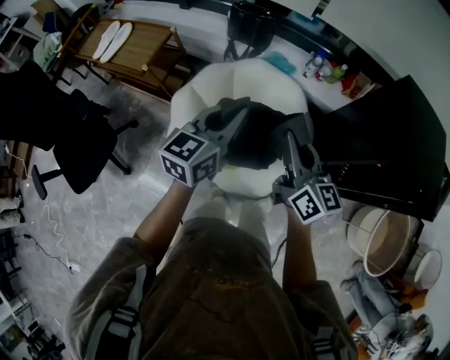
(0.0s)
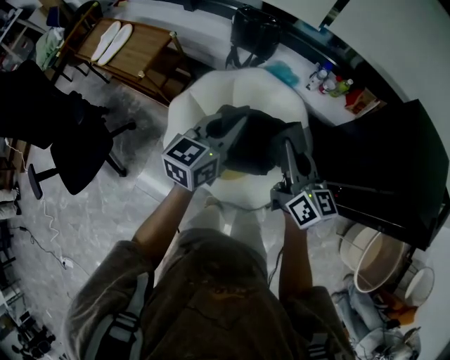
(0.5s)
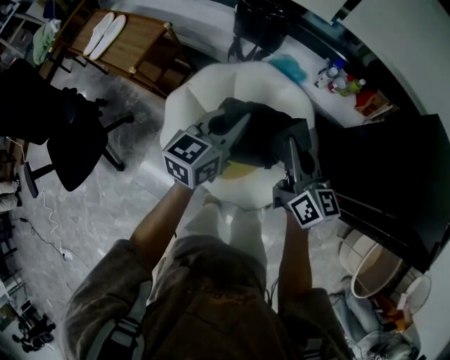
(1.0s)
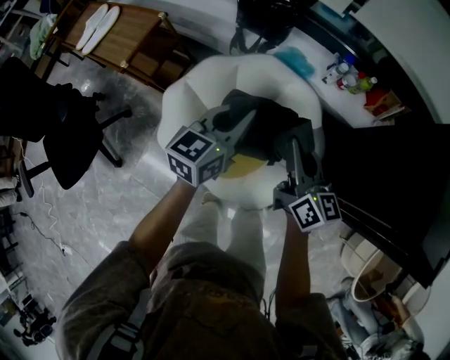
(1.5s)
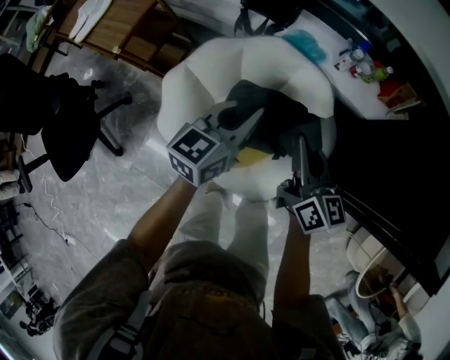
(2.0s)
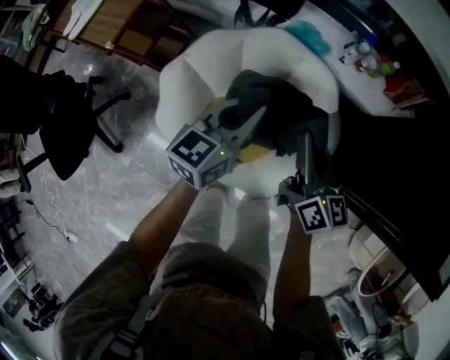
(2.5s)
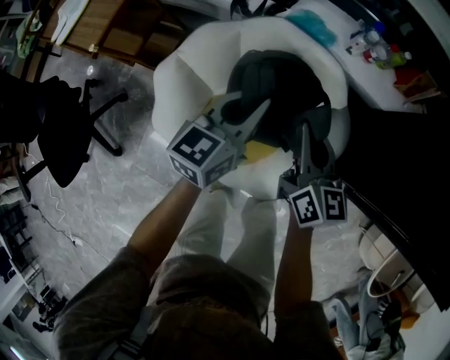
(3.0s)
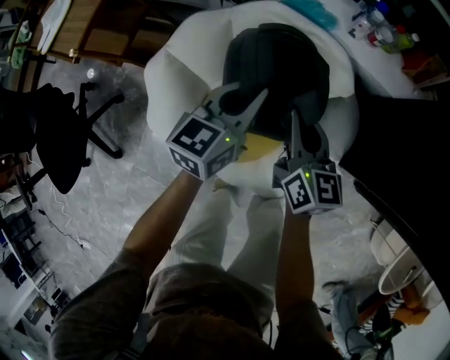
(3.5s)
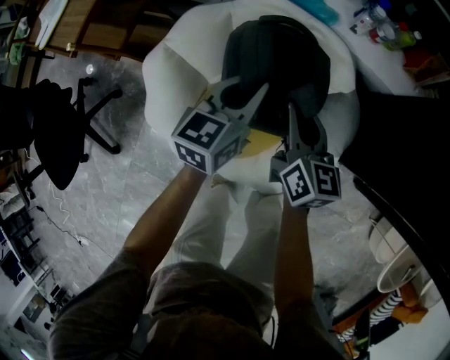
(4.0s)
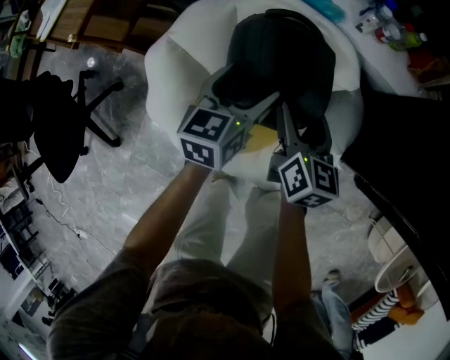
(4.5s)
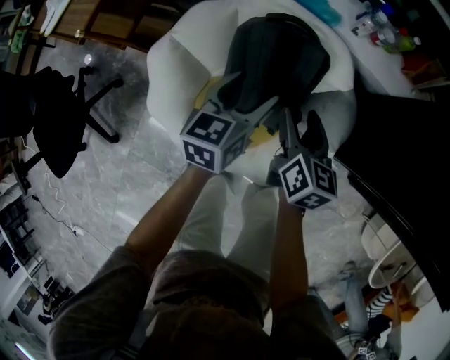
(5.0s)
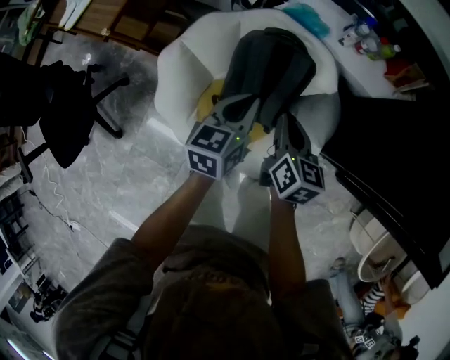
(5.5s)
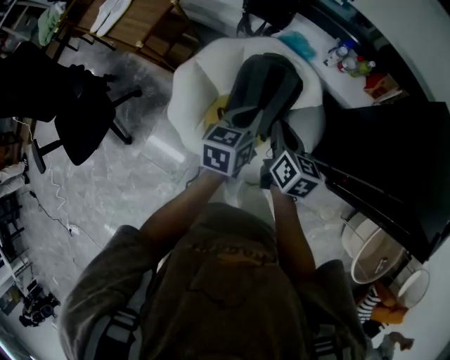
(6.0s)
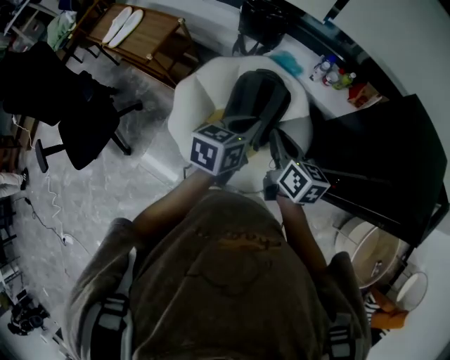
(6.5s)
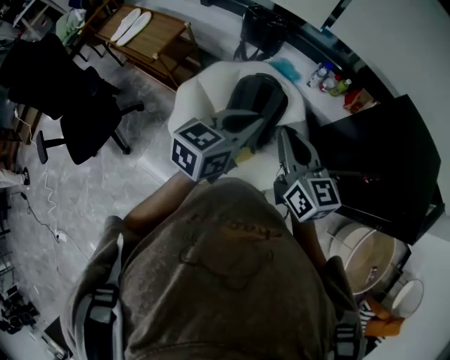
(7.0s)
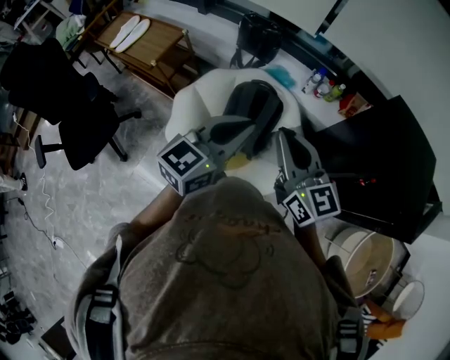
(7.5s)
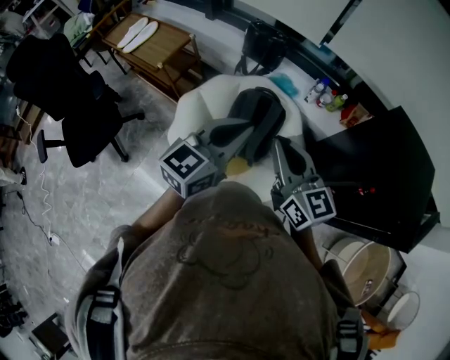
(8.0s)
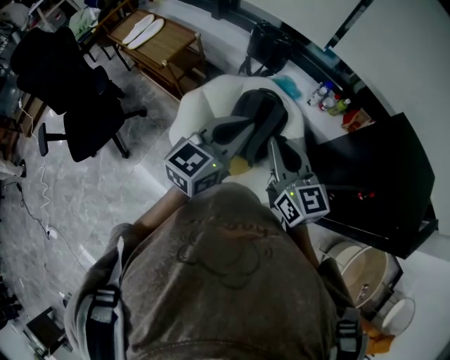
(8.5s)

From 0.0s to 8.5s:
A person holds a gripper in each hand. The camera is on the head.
From 0.0s to 2.0s: Both grippers move downward and forward, about 20 cm.
From 2.0s to 4.0s: The grippers both shift downward by about 15 cm.
From 4.0s to 6.5s: The two grippers go approximately 30 cm upward and backward. The right gripper opens, then closes once more. The left gripper opens, then closes once more.
From 6.5s to 8.5s: The two grippers go roughly 10 cm upward. The right gripper changes its angle by approximately 30 degrees. The left gripper swivels about 30 degrees.

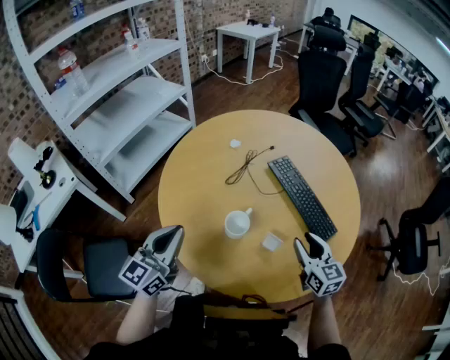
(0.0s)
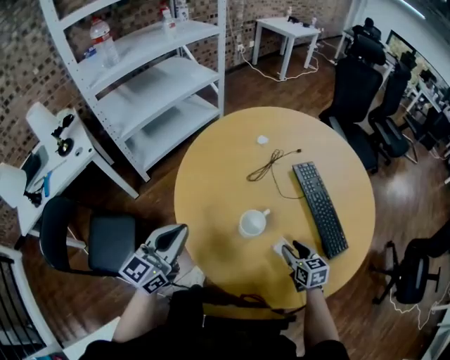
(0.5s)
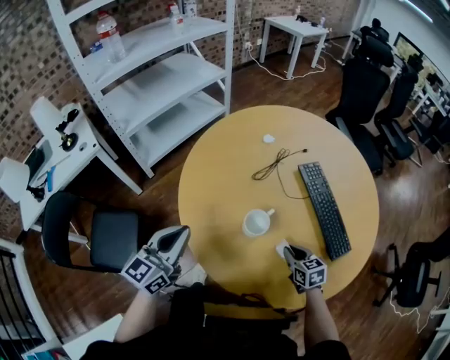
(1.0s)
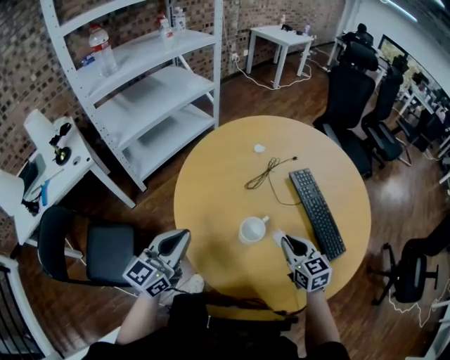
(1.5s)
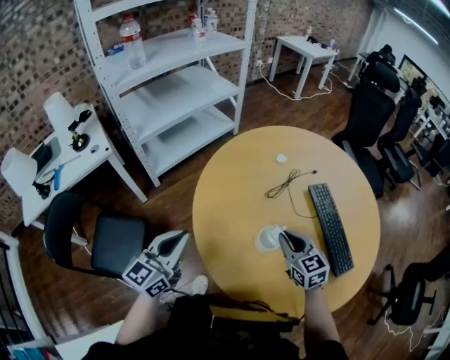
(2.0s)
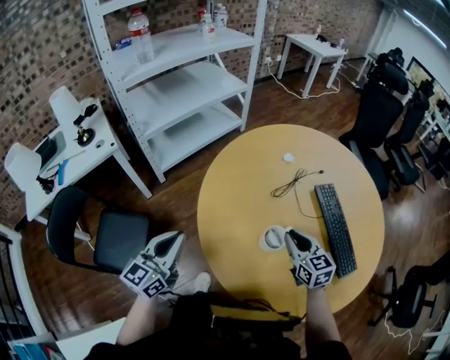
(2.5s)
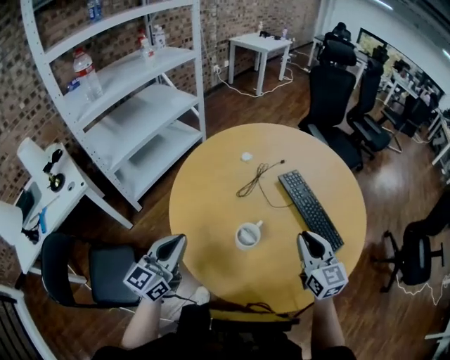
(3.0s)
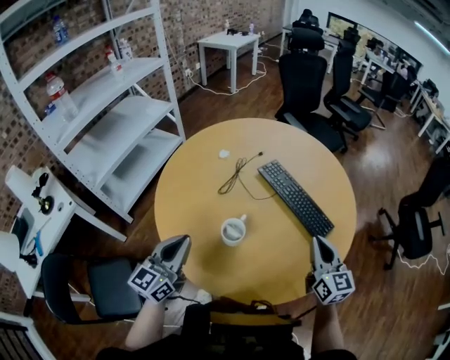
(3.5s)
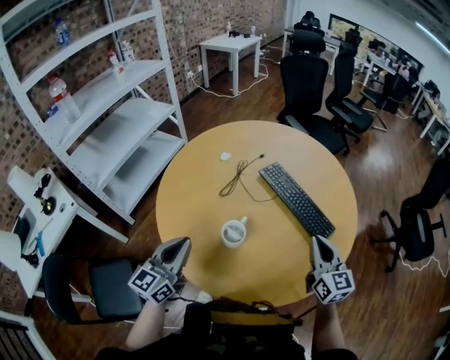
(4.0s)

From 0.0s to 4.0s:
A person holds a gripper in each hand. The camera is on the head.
From 0.0s to 2.0s: The left gripper shifts approximately 10 cm to the left. Meanwhile the right gripper heads to the left and forward, covering some 20 cm, swivels roughly 30 degrees, and closes its fingers.
From 2.0s to 4.0s: The left gripper moves about 10 cm. The right gripper shifts by about 25 cm, and turns by some 40 degrees.

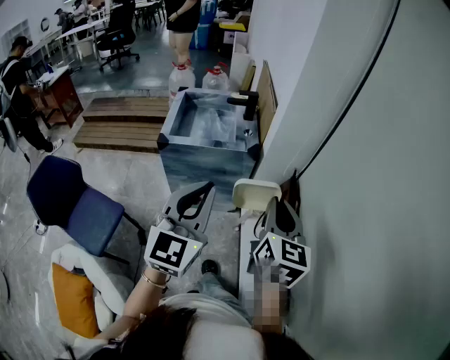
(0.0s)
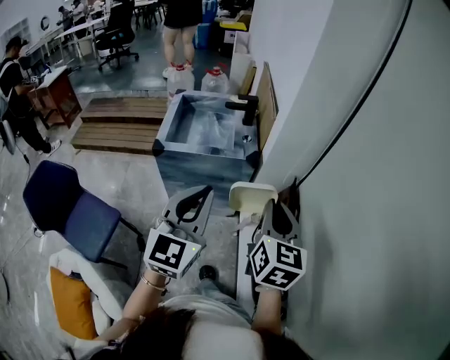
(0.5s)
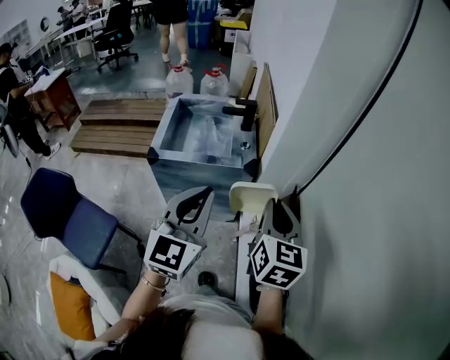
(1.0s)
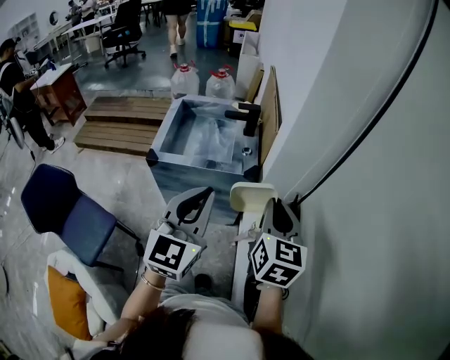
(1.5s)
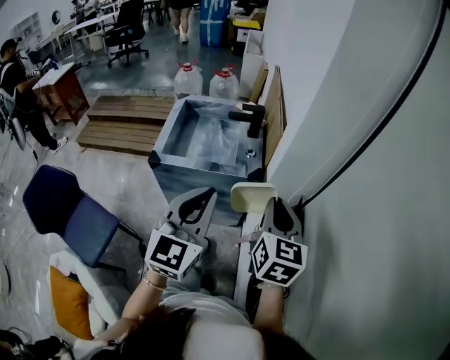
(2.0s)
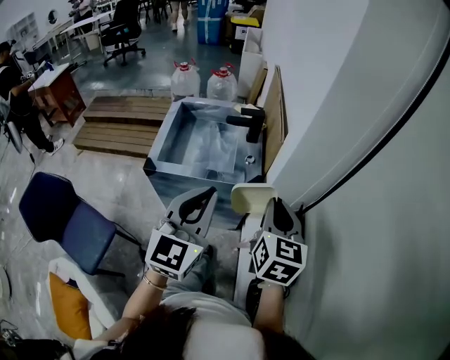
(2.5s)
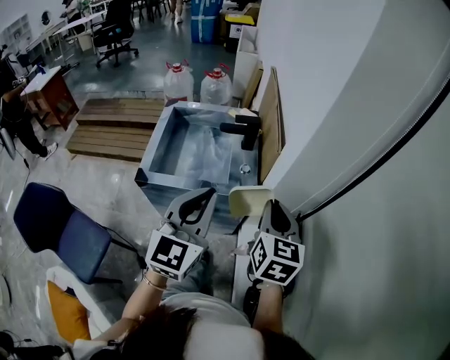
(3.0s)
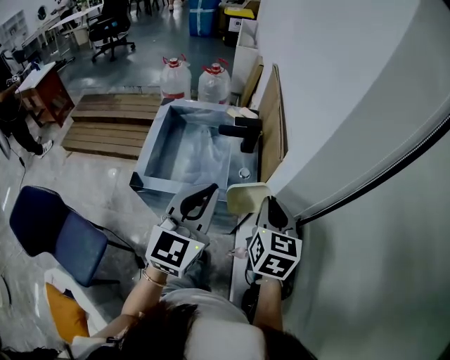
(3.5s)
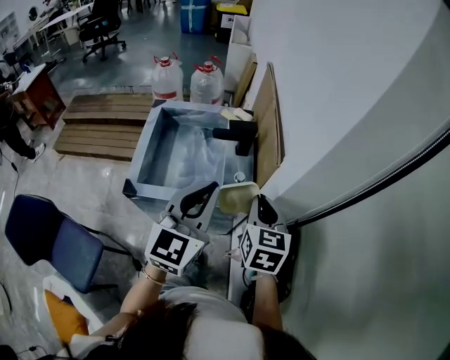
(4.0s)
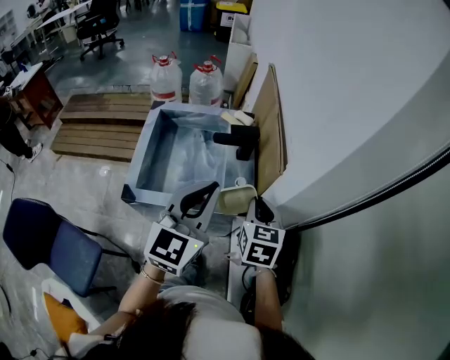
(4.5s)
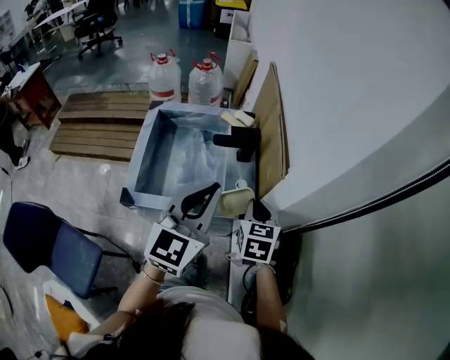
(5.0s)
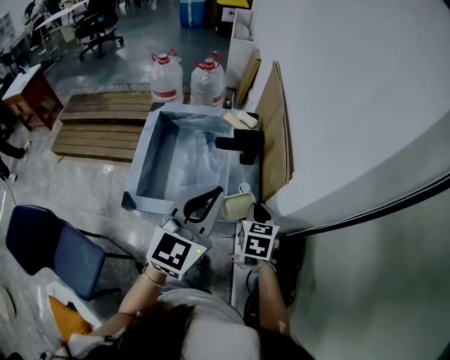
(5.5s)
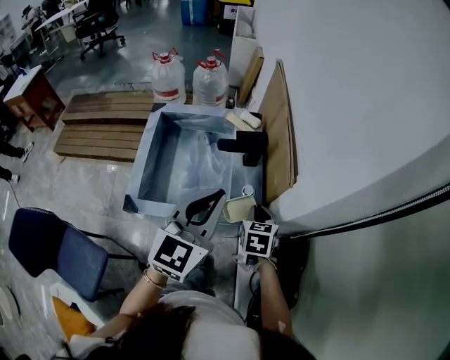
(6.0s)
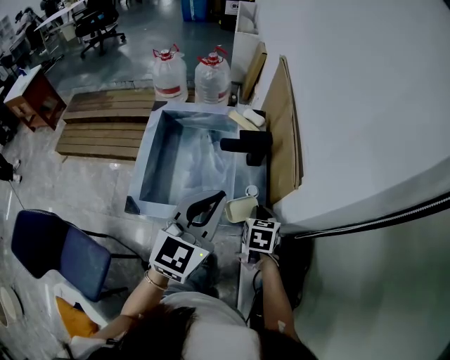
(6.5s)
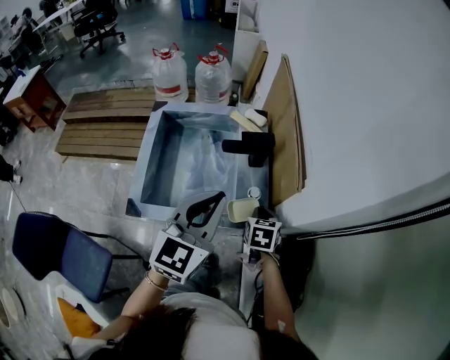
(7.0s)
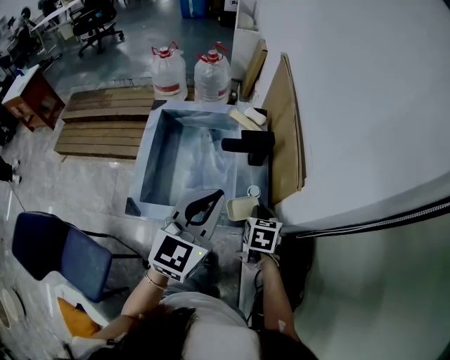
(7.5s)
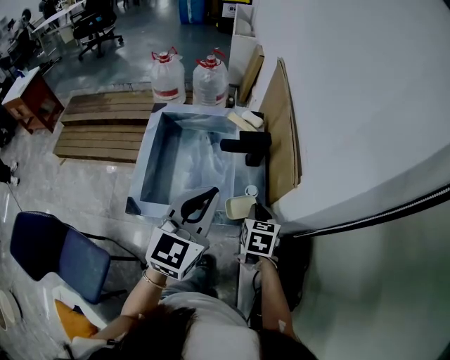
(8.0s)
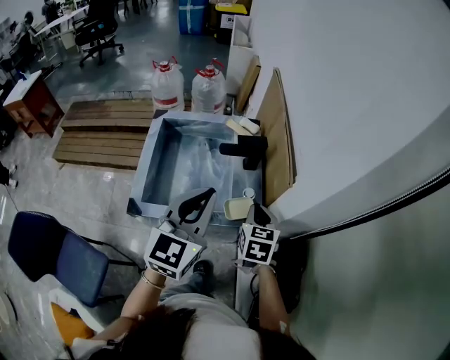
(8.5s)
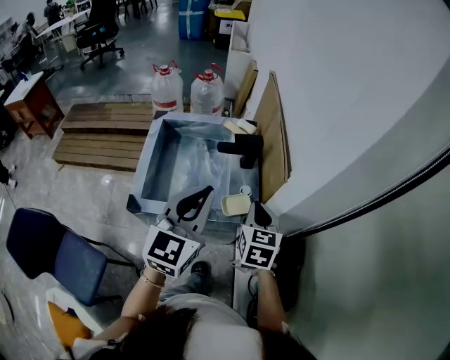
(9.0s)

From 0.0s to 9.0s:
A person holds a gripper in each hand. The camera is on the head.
From 0.0s to 2.0s: Both grippers travel together forward, some 15 cm.
From 2.0s to 4.5s: The left gripper goes roughly 25 cm forward; the right gripper goes some 25 cm forward and downward.
From 4.5s to 7.0s: The right gripper shifts approximately 20 cm downward and forward, and rotates some 20 degrees. Meanwhile the left gripper is displaced forward and downward by approximately 10 cm.
From 7.0s to 9.0s: The right gripper shifts about 15 cm upward, and turns by roughly 20 degrees. Meanwhile the left gripper travels backward by roughly 5 cm.

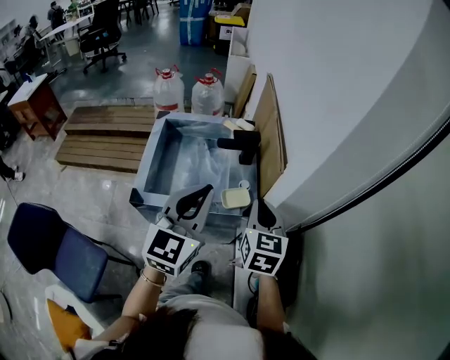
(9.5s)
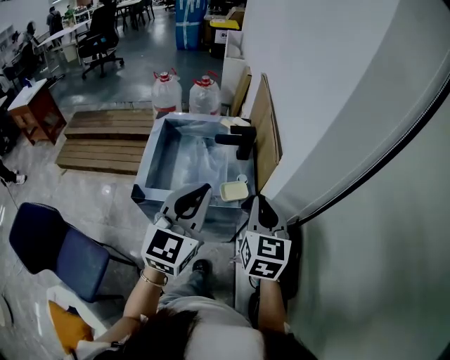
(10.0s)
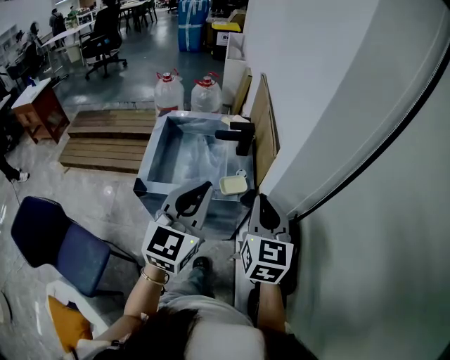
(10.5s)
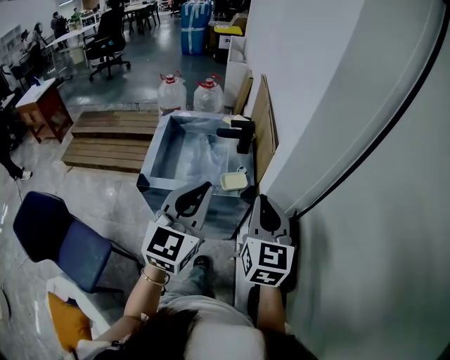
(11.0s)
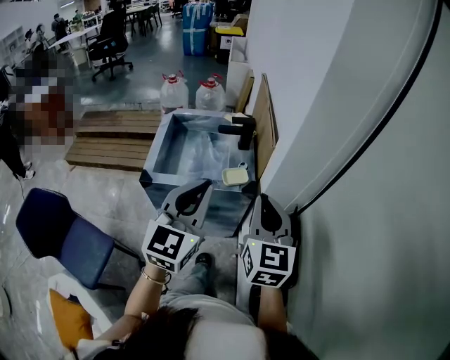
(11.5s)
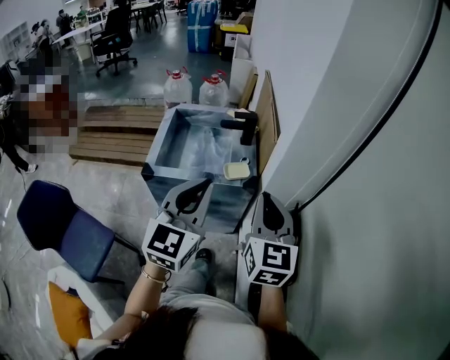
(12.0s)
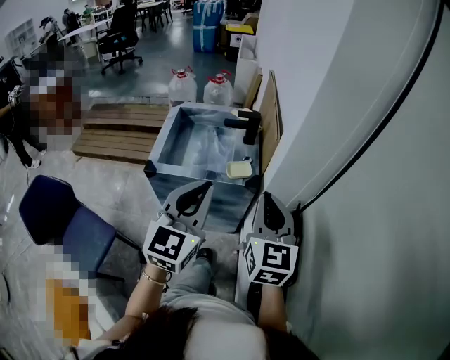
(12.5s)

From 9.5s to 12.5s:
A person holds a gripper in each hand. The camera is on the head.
From 9.5s to 11.0s: The left gripper heads backward, covering about 10 cm; the right gripper moves backward and upward, roughly 15 cm.
From 11.0s to 12.5s: The left gripper travels backward by approximately 5 cm.

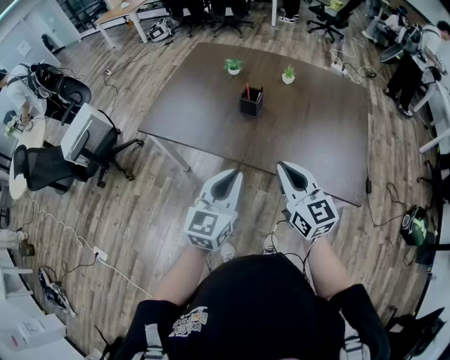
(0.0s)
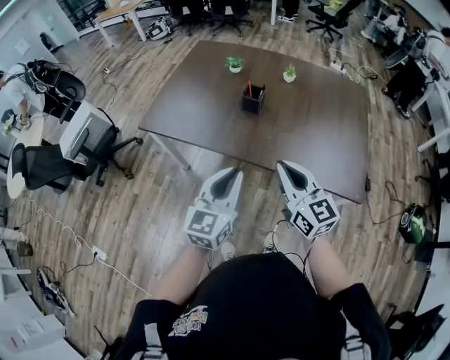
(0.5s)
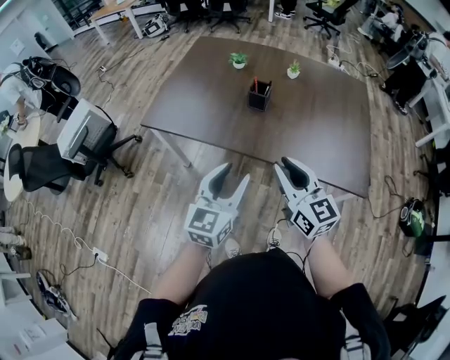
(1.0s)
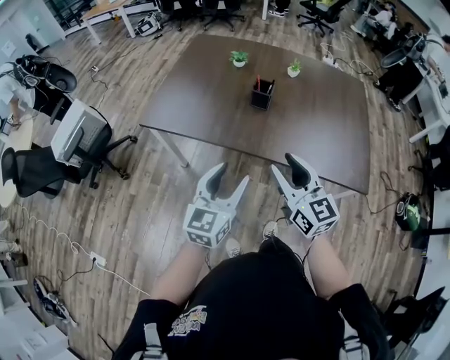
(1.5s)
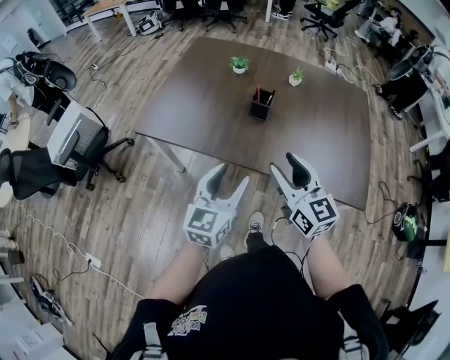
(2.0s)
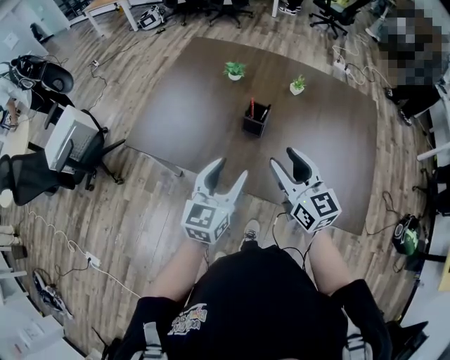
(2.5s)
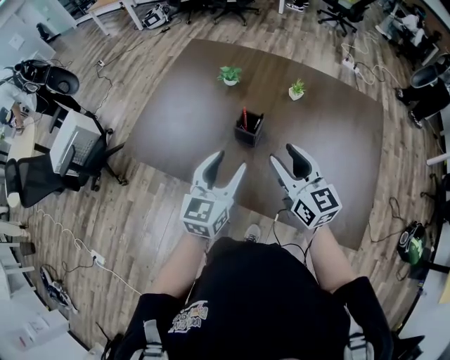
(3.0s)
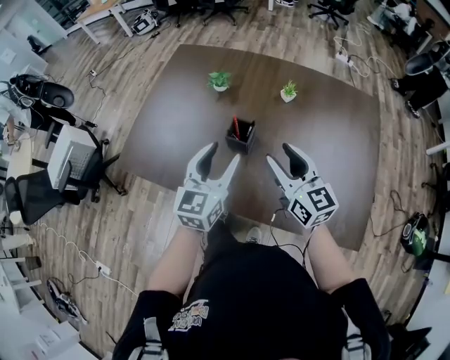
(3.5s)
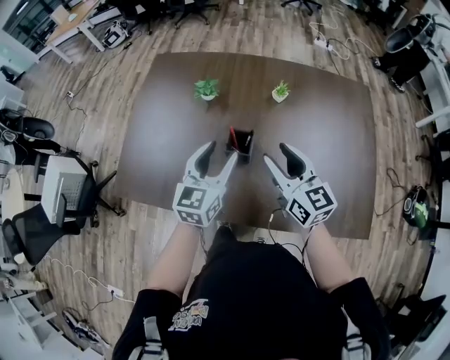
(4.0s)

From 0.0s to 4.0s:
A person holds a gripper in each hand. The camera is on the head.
From 0.0s to 2.0s: Both grippers travel together to the left and forward, some 10 cm. The right gripper opens. The left gripper opens its fingers.
From 2.0s to 4.0s: The two grippers go roughly 30 cm forward.
